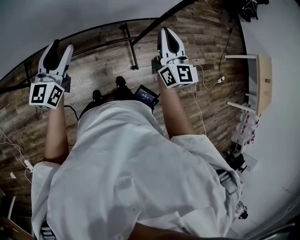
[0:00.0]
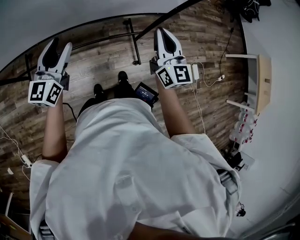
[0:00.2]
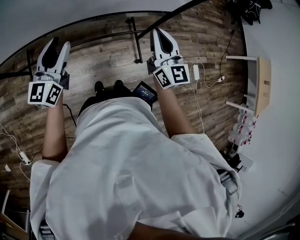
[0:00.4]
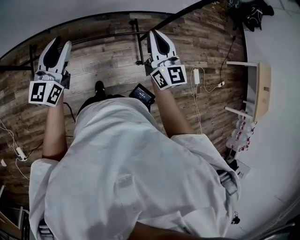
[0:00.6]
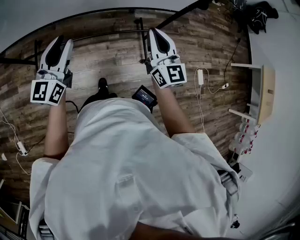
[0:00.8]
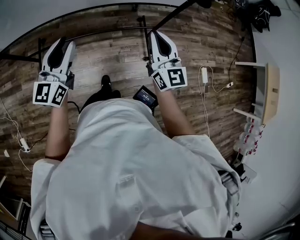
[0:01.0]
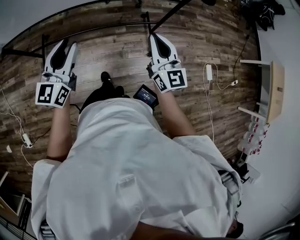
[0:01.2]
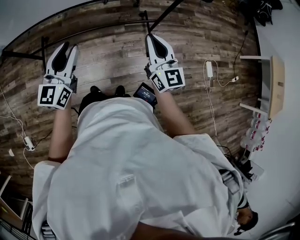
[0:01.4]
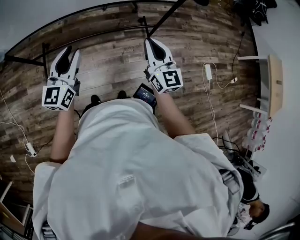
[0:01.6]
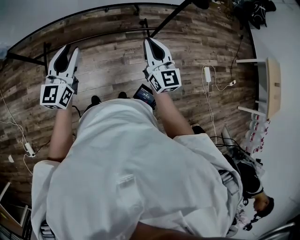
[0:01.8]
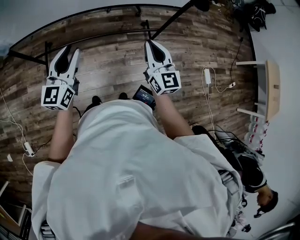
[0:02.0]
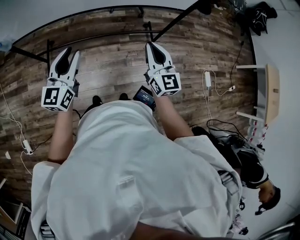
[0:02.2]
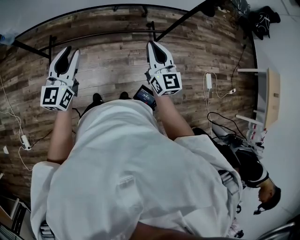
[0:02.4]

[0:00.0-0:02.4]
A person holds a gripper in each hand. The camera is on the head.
0.0 to 1.2 s: The right gripper heads backward and to the left, covering roughly 20 cm. Meanwhile the left gripper shifts some 20 cm backward, and closes its fingers.
1.2 to 2.4 s: The right gripper is displaced to the left by about 10 cm, while the left gripper heads to the left and backward, covering roughly 10 cm.

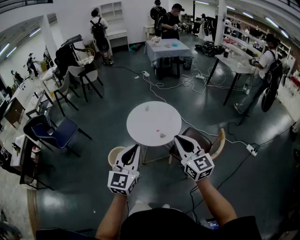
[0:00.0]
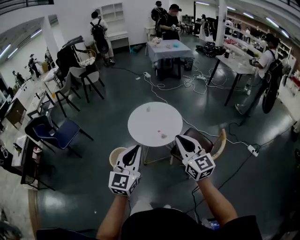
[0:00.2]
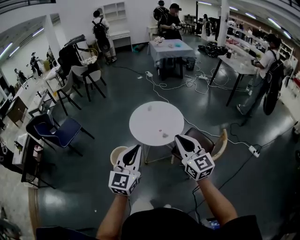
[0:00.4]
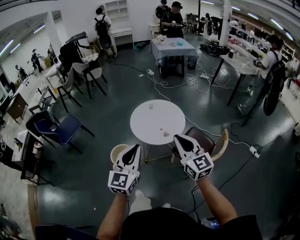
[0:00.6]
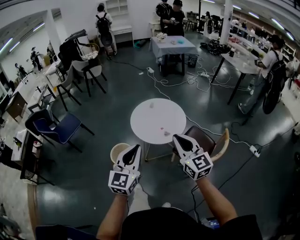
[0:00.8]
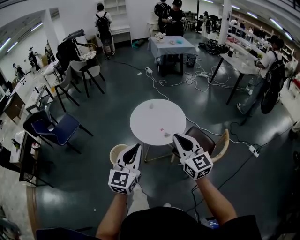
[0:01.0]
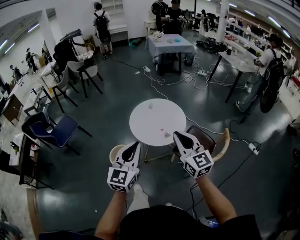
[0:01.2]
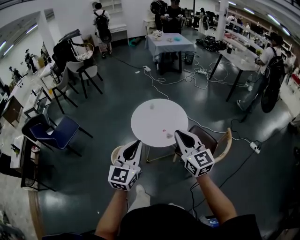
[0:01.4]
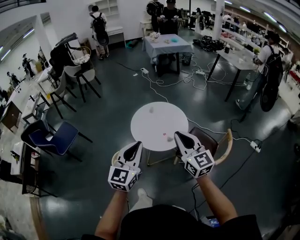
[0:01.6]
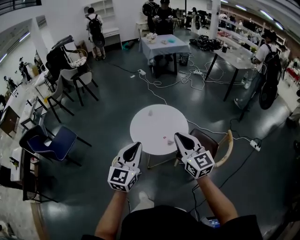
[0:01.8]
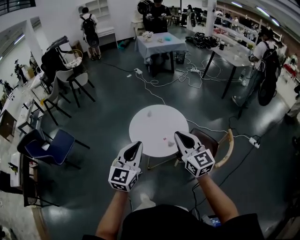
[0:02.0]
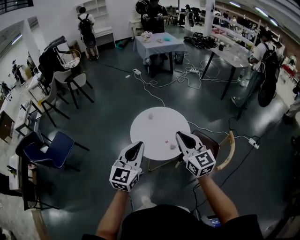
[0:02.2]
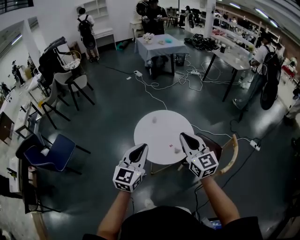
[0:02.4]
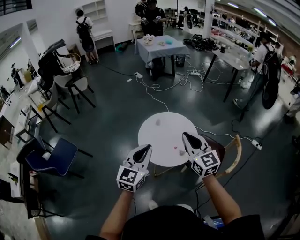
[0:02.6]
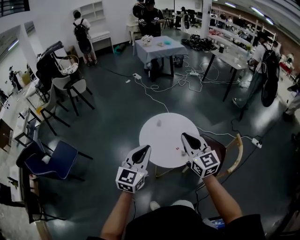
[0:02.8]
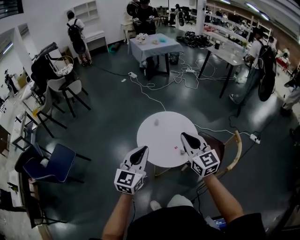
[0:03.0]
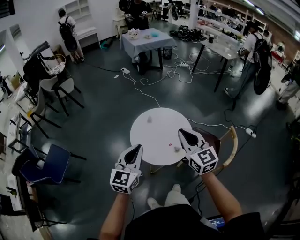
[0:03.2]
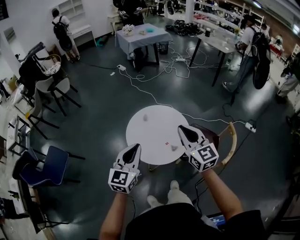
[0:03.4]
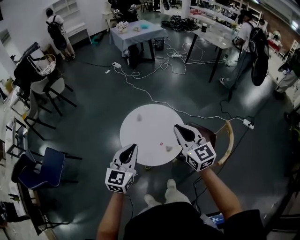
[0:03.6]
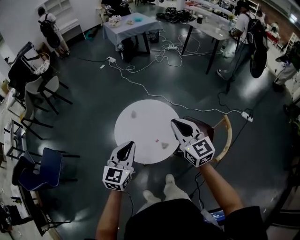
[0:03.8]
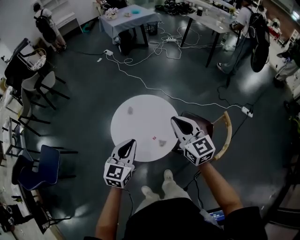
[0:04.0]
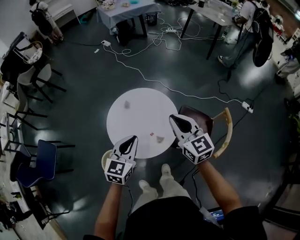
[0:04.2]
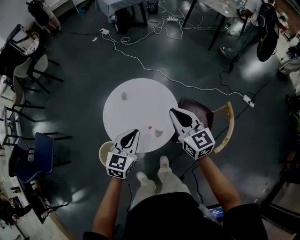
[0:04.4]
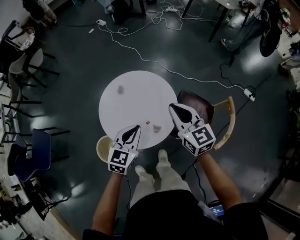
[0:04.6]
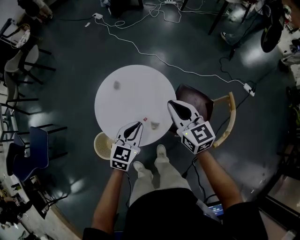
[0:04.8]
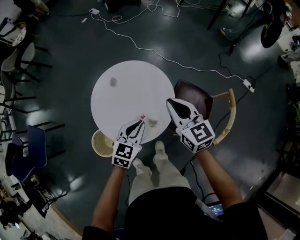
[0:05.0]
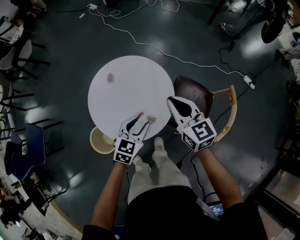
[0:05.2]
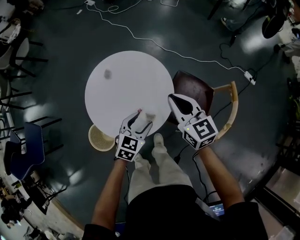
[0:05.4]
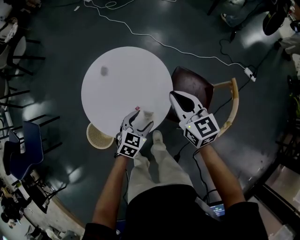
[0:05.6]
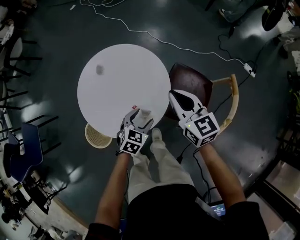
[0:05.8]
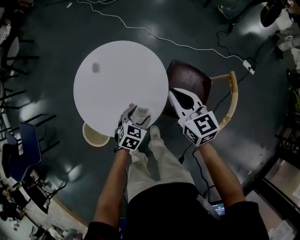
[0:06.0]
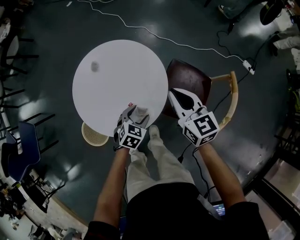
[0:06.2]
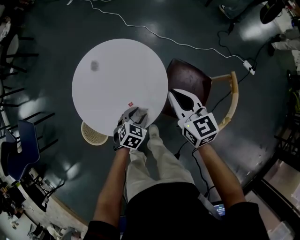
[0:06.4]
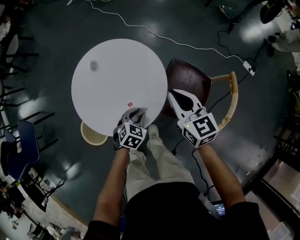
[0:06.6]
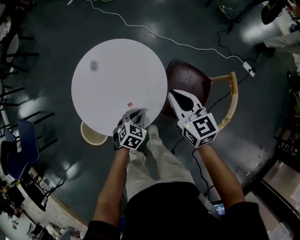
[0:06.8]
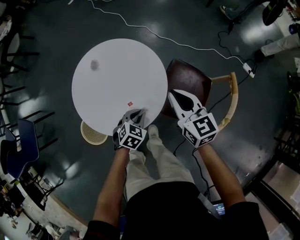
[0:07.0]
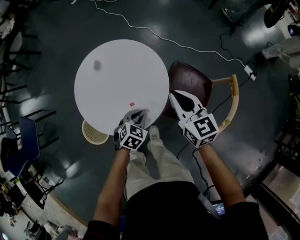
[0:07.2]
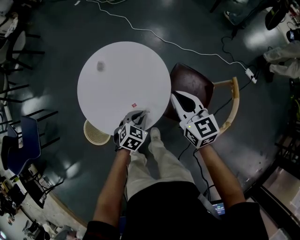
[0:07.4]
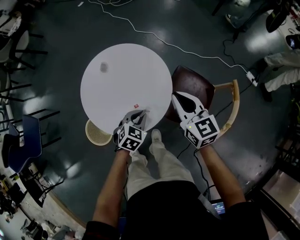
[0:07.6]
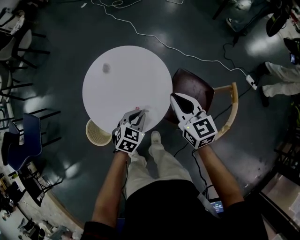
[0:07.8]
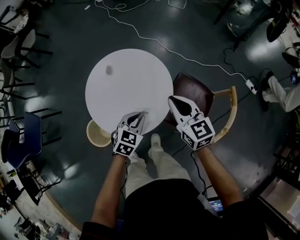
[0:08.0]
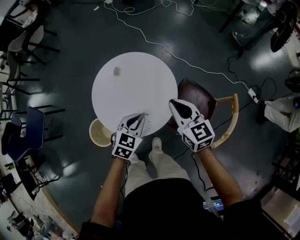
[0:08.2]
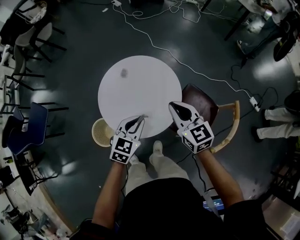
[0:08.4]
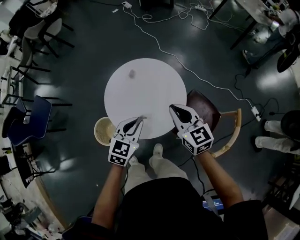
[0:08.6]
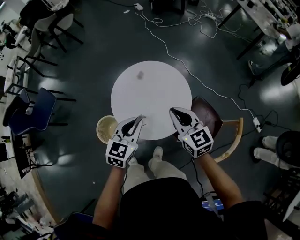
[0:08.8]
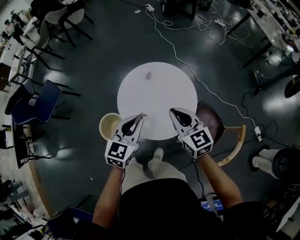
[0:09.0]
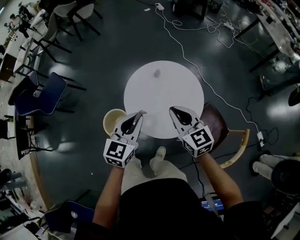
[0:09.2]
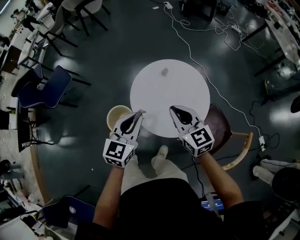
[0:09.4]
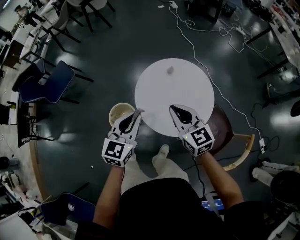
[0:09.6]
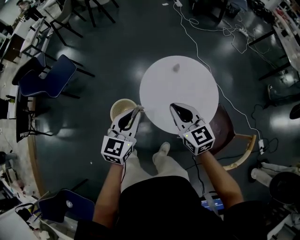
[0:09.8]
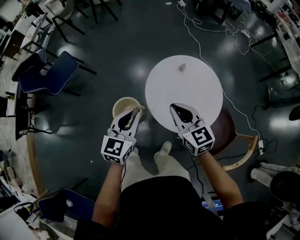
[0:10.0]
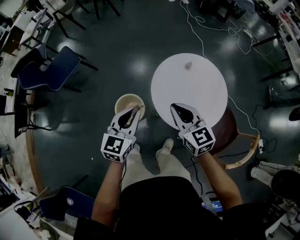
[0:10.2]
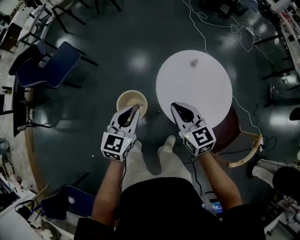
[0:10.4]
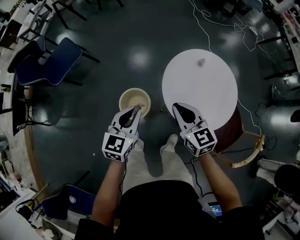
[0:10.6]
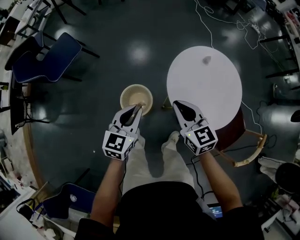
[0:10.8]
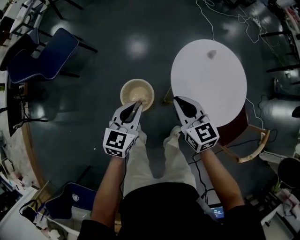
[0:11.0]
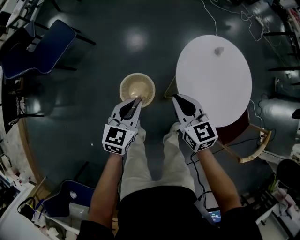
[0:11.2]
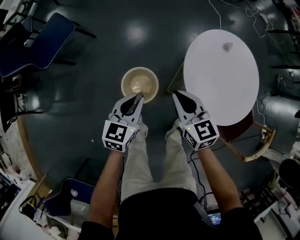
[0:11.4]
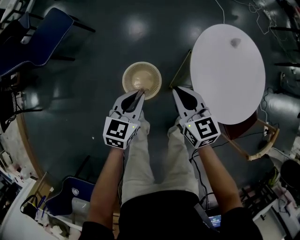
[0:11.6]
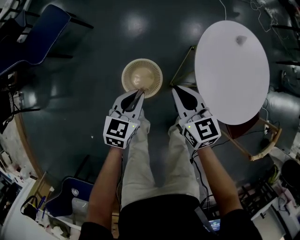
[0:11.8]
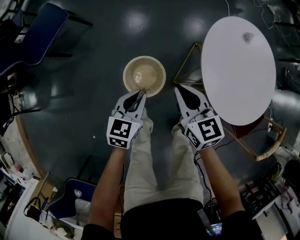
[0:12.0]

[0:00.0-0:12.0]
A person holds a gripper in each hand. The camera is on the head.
0.0 to 1.6 s: Both grippers move forward and to the left, some 15 cm.
1.6 to 3.0 s: Both grippers move forward and to the left, some 20 cm.
3.0 to 4.4 s: The left gripper travels forward, downward and to the right by some 30 cm, and turns by roughly 20 degrees. Meanwhile the right gripper goes roughly 30 cm forward, to the right and downward.
4.4 to 6.0 s: The right gripper goes some 20 cm downward and to the right, while the left gripper goes about 30 cm downward, changes its angle by about 30 degrees, and opens its fingers.
6.0 to 7.6 s: The left gripper closes.
7.6 to 9.0 s: The right gripper shifts by approximately 20 cm, and swivels some 30 degrees, while the left gripper heads upward, covering approximately 25 cm, and tilts its fingers roughly 30 degrees upward.
9.0 to 10.4 s: The two grippers go roughly 30 cm to the left.
10.4 to 12.0 s: Both grippers travel together downward and to the left, some 35 cm.

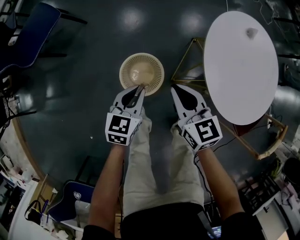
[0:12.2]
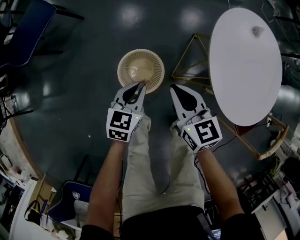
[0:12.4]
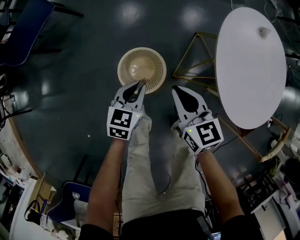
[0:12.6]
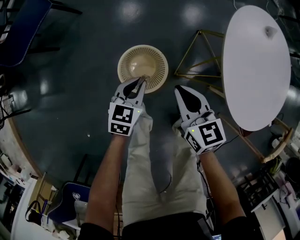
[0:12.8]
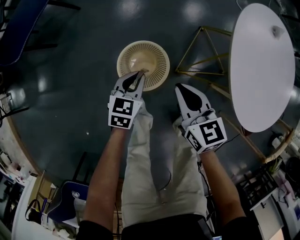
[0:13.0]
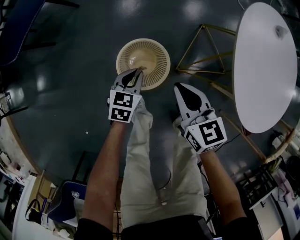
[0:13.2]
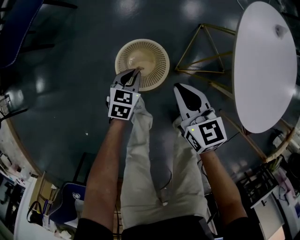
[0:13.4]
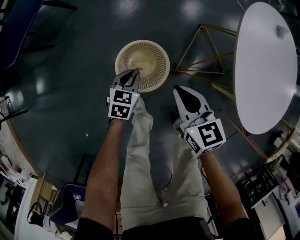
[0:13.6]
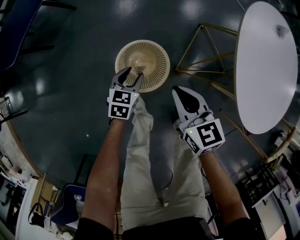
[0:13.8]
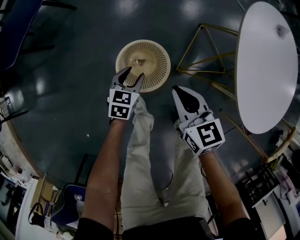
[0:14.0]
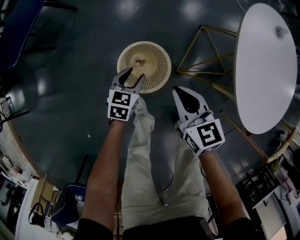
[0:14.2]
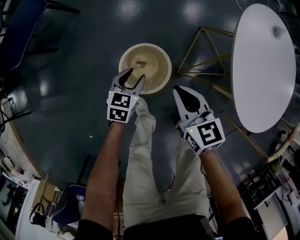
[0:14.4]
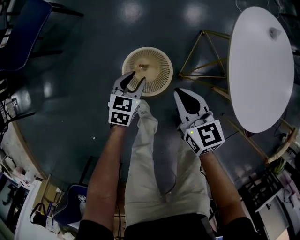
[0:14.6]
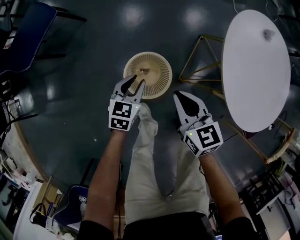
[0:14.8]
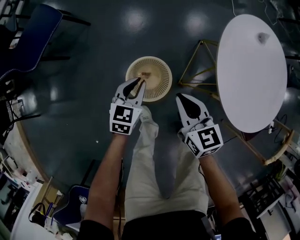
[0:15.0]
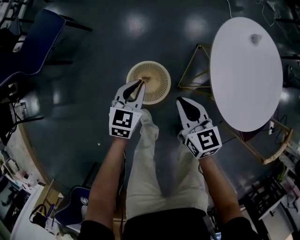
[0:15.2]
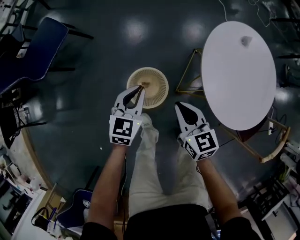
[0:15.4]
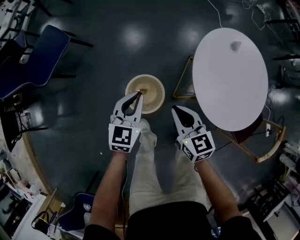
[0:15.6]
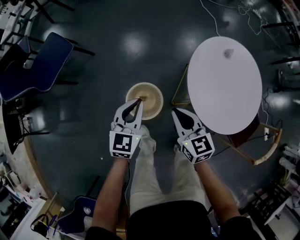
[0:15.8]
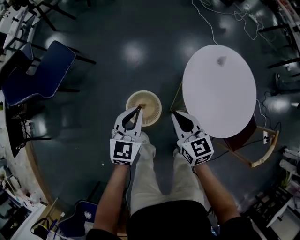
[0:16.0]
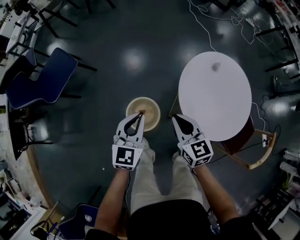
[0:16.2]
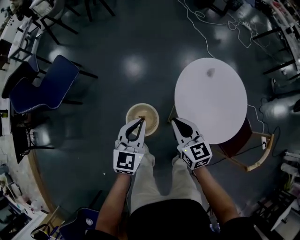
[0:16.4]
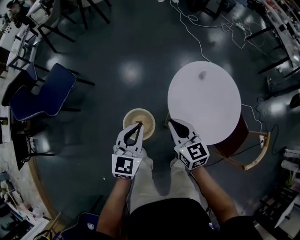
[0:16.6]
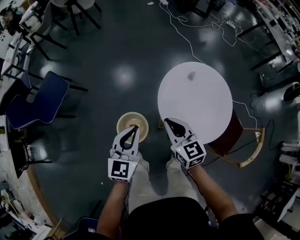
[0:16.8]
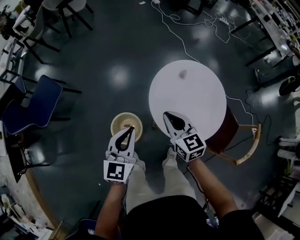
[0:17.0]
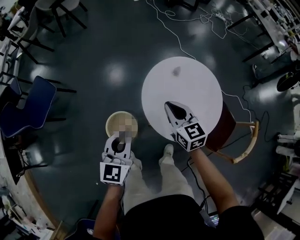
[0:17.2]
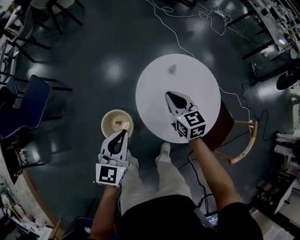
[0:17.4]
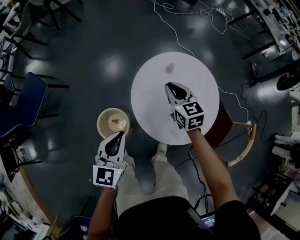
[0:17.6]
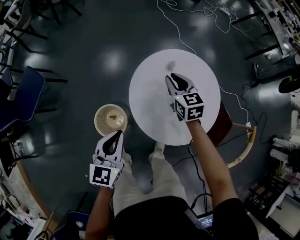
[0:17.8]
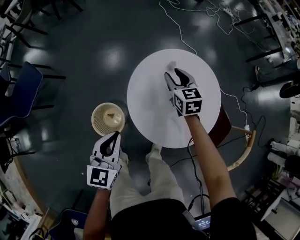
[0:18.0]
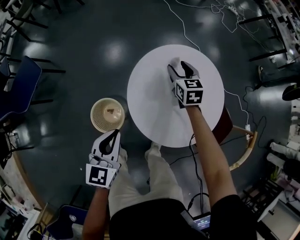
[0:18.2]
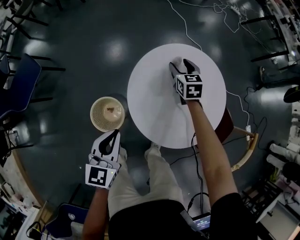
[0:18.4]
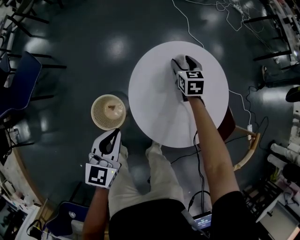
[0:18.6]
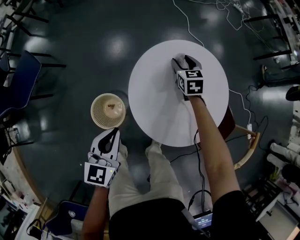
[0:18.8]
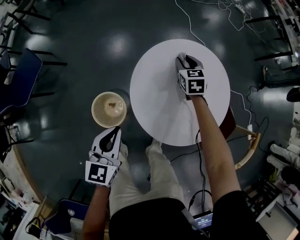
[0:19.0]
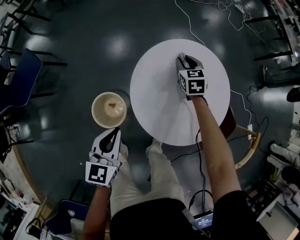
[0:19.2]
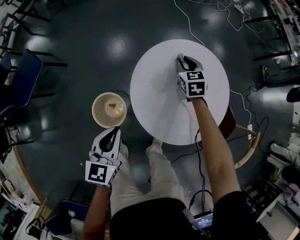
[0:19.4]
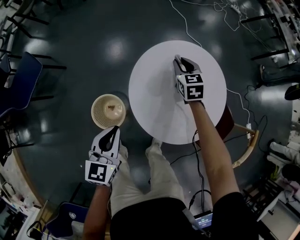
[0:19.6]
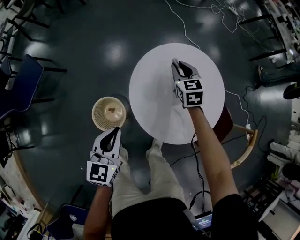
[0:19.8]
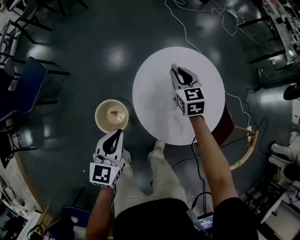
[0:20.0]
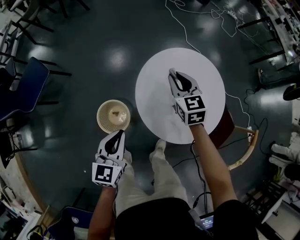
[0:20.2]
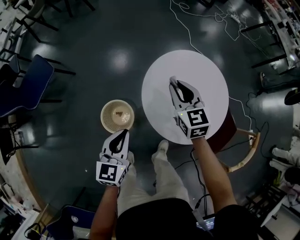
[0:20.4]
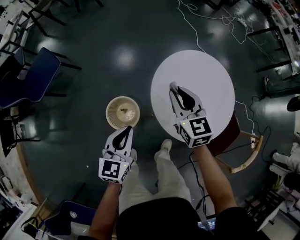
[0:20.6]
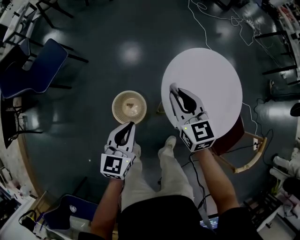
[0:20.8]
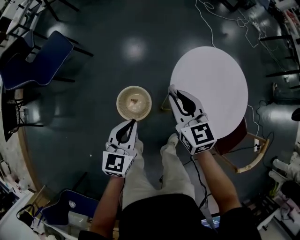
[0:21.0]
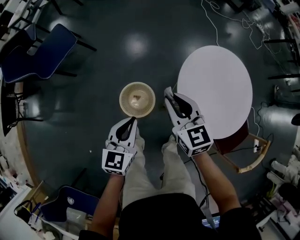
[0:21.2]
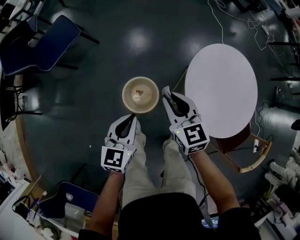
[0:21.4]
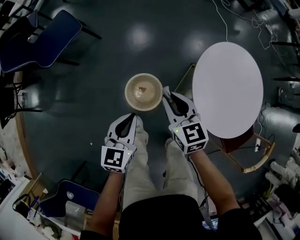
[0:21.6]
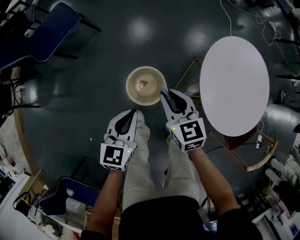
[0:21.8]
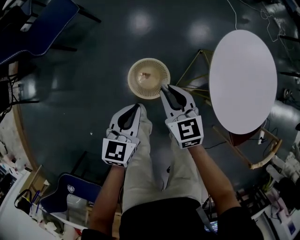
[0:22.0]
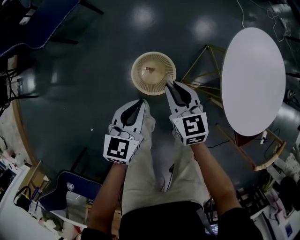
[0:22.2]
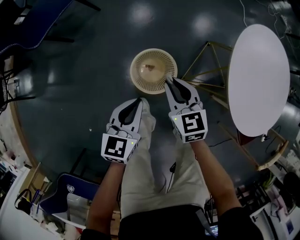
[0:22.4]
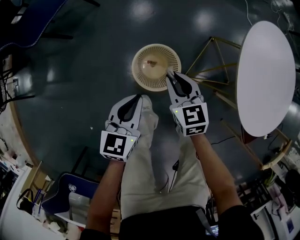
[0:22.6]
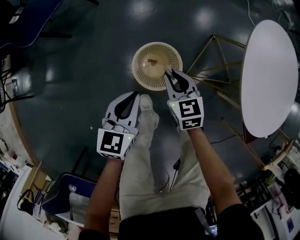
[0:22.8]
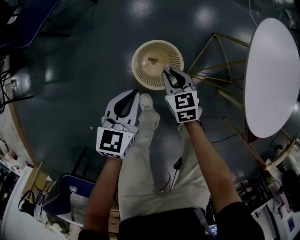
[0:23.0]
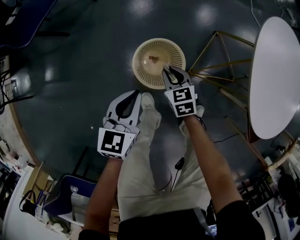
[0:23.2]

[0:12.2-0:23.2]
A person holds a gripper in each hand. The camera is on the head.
12.2 to 13.8 s: The left gripper is displaced downward by approximately 25 cm, and opens up, while the right gripper goes roughly 15 cm downward.
13.8 to 15.4 s: The right gripper travels upward by roughly 15 cm. Meanwhile the left gripper travels upward by approximately 30 cm, turns by about 20 degrees, and closes up.
15.4 to 17.0 s: The grippers both shift upward and to the right by some 30 cm.
17.0 to 18.4 s: The left gripper shifts approximately 15 cm downward and to the right; the right gripper shifts some 35 cm forward, downward and to the right, rotates some 20 degrees, and opens up.
18.4 to 20.0 s: The right gripper travels upward and backward by roughly 10 cm, and closes its fingers.
20.0 to 21.6 s: The left gripper is displaced to the left by some 20 cm. The right gripper heads to the left and backward, covering some 40 cm, and swivels approximately 20 degrees.
21.6 to 23.2 s: The left gripper is displaced downward by some 25 cm. Meanwhile the right gripper heads downward, covering some 40 cm.
